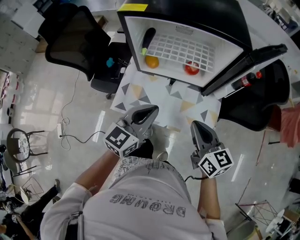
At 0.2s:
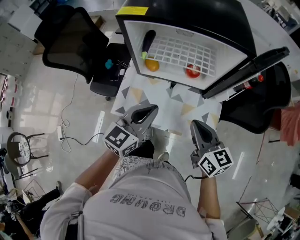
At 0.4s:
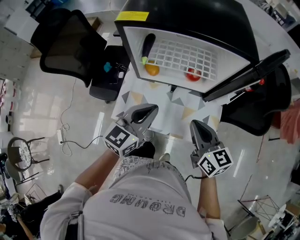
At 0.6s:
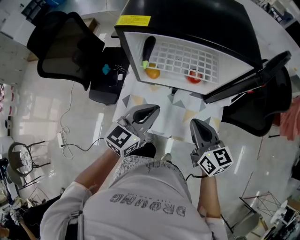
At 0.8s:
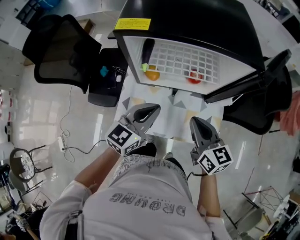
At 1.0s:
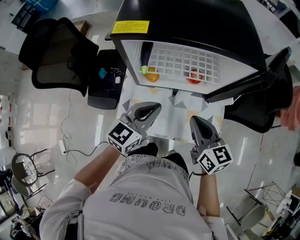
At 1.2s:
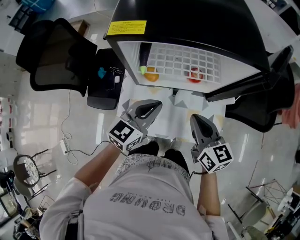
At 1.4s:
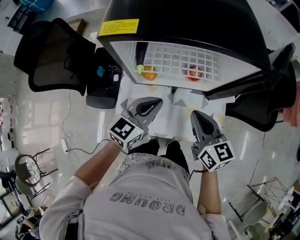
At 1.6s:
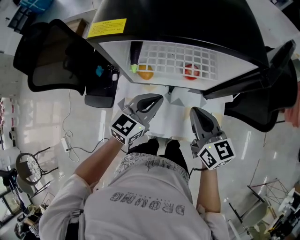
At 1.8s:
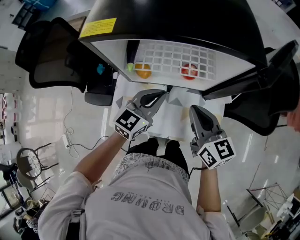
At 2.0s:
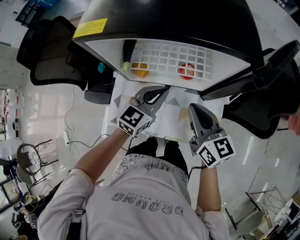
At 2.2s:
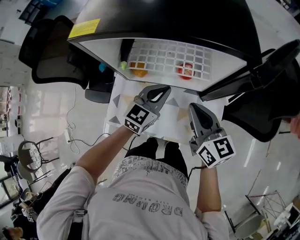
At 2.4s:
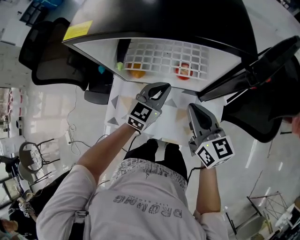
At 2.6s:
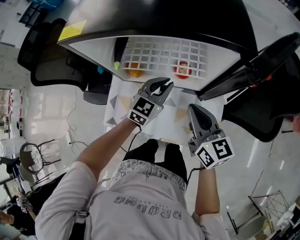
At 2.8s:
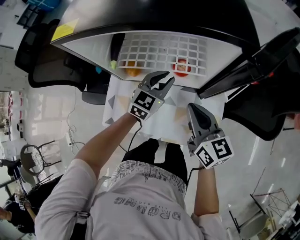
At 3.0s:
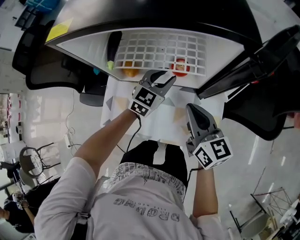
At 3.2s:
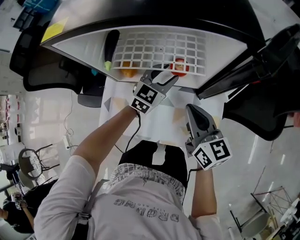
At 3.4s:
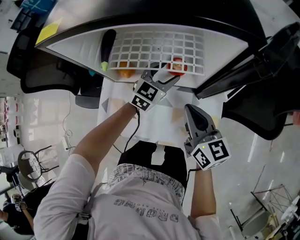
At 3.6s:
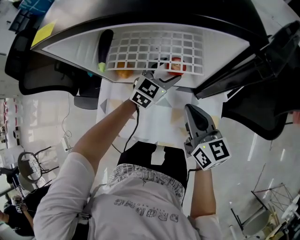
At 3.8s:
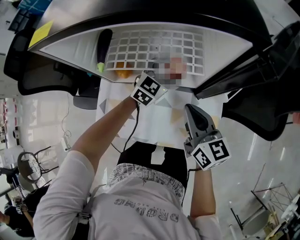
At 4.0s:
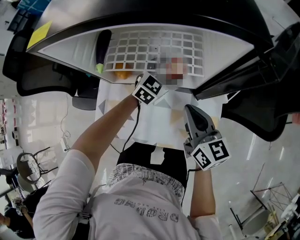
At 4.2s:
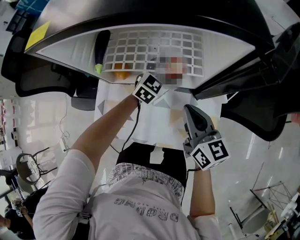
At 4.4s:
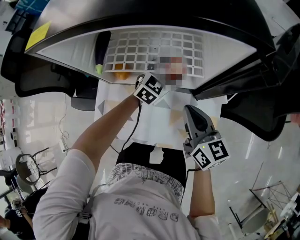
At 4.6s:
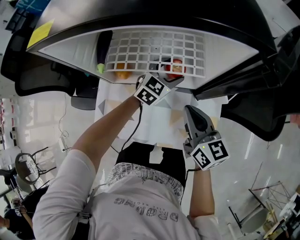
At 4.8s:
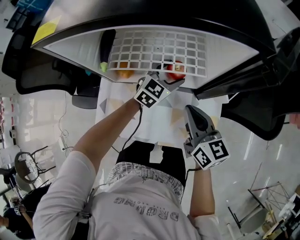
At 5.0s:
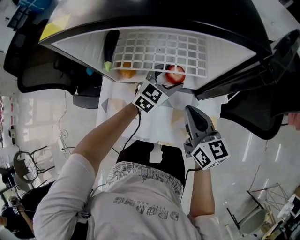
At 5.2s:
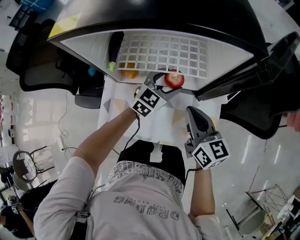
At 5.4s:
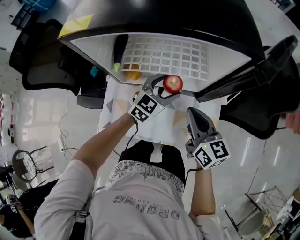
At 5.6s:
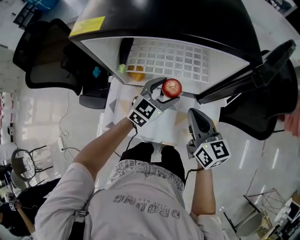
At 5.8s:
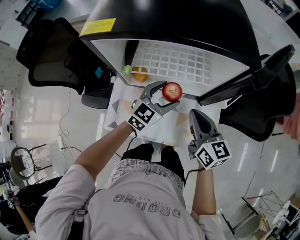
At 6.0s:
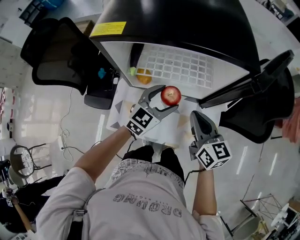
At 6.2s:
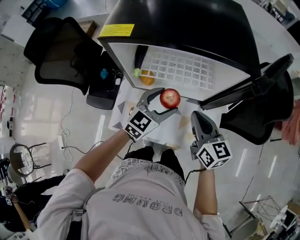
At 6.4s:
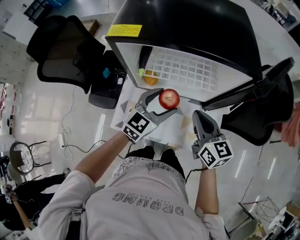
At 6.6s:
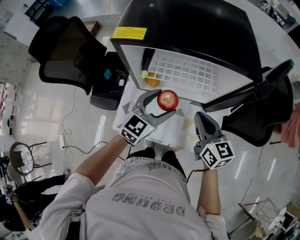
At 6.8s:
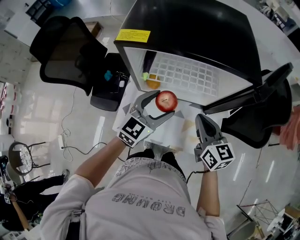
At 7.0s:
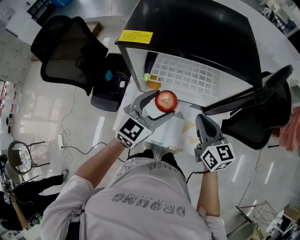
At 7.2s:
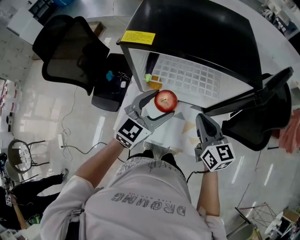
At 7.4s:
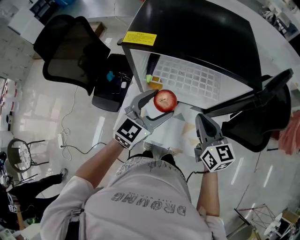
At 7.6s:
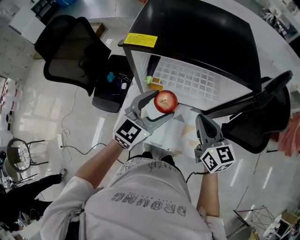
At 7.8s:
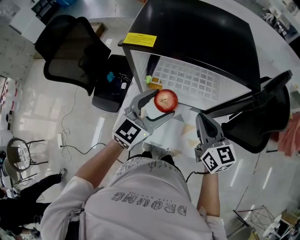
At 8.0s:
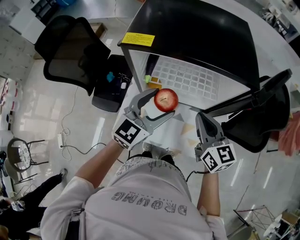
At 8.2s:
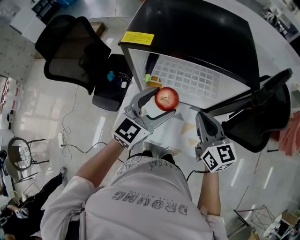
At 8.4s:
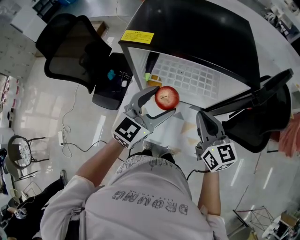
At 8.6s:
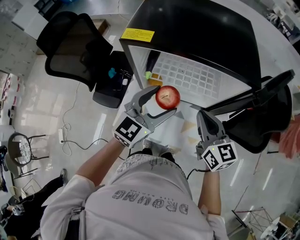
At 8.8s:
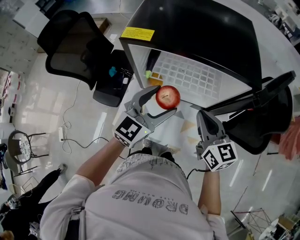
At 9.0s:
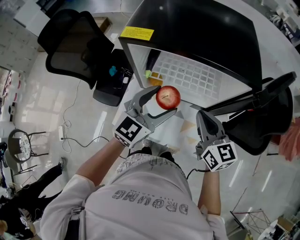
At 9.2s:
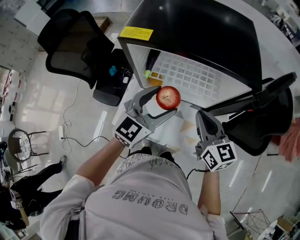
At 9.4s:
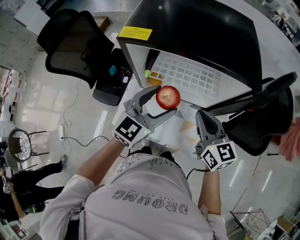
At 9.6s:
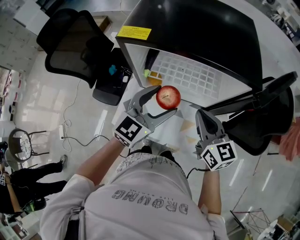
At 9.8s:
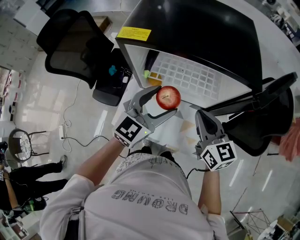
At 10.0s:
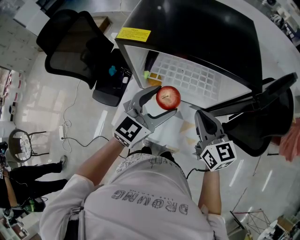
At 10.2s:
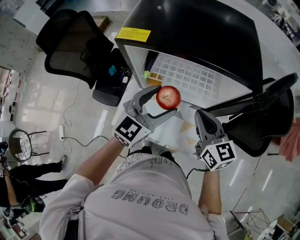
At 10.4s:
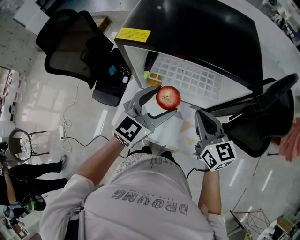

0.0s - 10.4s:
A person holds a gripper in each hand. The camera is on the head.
0.0s - 1.4s: The right gripper heads forward and to the left, covering some 10 cm; the left gripper goes some 10 cm forward.
1.4s - 3.0s: The right gripper moves to the right and downward, roughly 10 cm; the left gripper shifts about 20 cm forward, to the right and downward, and opens its fingers.
3.0s - 4.4s: The left gripper shifts by roughly 10 cm, and opens its fingers.
4.4s - 6.0s: The right gripper heads upward, covering about 5 cm; the left gripper travels backward, upward and to the left by some 20 cm.
6.0s - 7.4s: The right gripper moves some 5 cm. The left gripper goes some 15 cm upward and to the left.
7.4s - 9.0s: There are only small adjustments of the grippers.
9.0s - 10.4s: The two grippers keep their place.

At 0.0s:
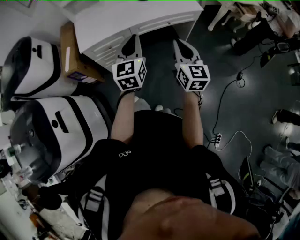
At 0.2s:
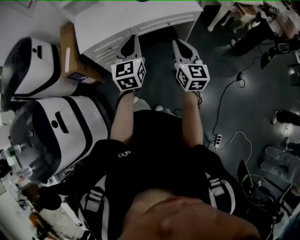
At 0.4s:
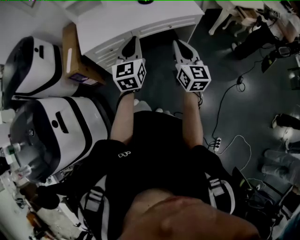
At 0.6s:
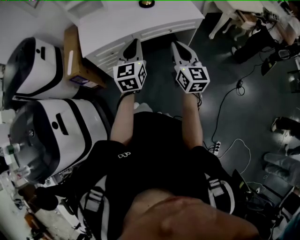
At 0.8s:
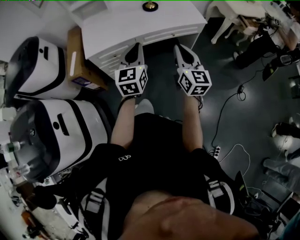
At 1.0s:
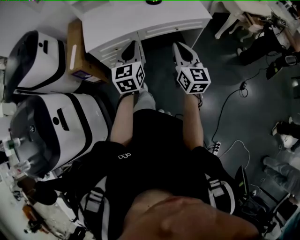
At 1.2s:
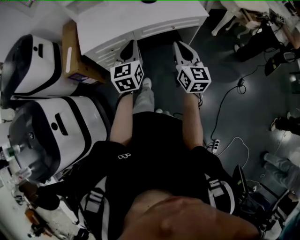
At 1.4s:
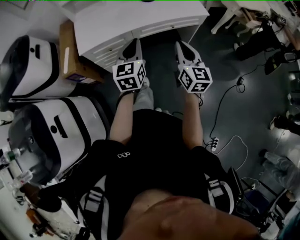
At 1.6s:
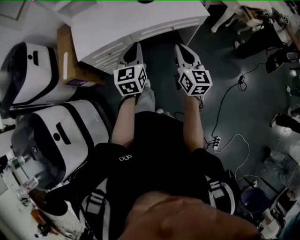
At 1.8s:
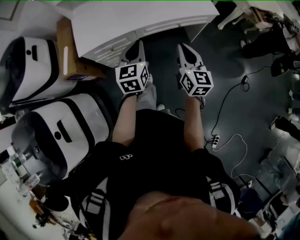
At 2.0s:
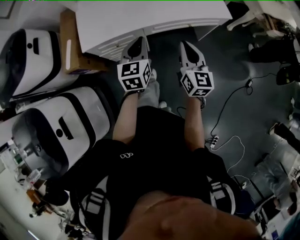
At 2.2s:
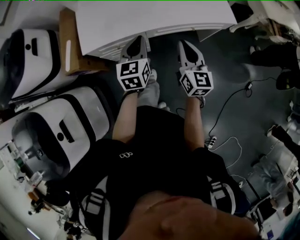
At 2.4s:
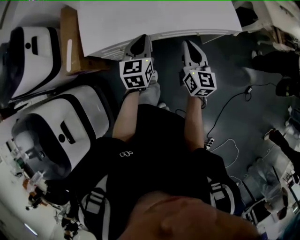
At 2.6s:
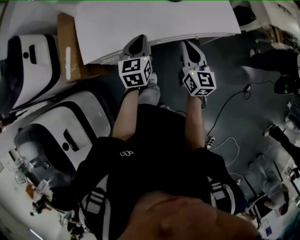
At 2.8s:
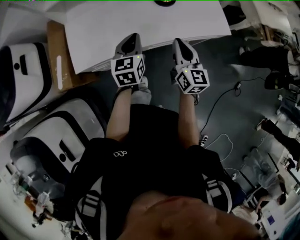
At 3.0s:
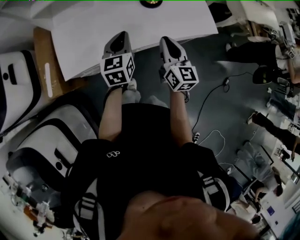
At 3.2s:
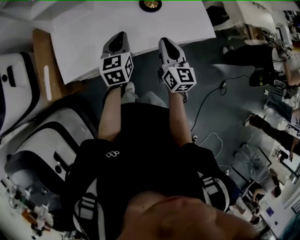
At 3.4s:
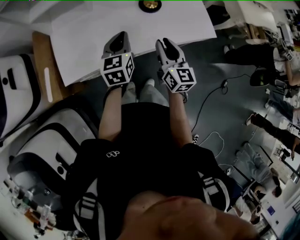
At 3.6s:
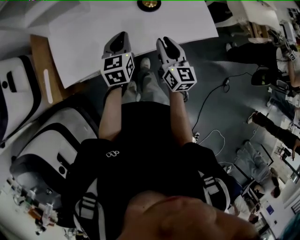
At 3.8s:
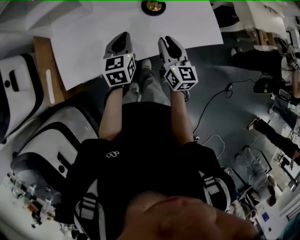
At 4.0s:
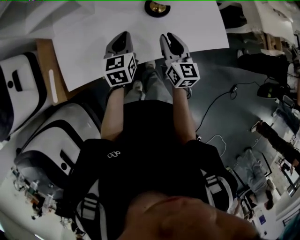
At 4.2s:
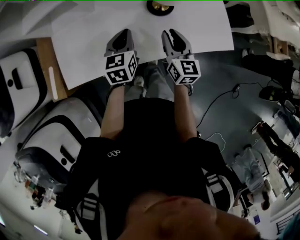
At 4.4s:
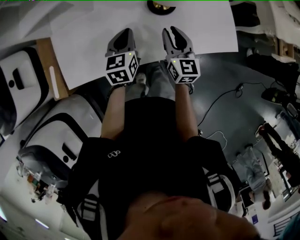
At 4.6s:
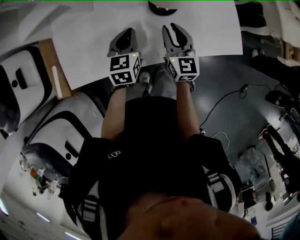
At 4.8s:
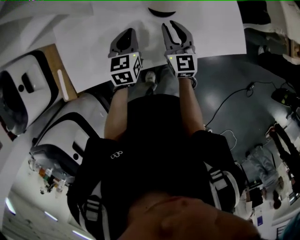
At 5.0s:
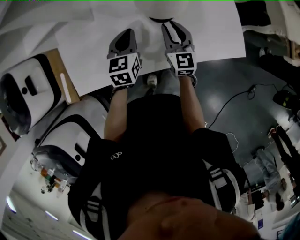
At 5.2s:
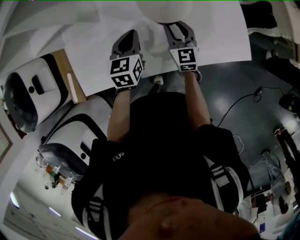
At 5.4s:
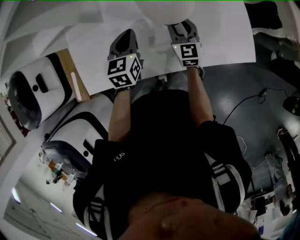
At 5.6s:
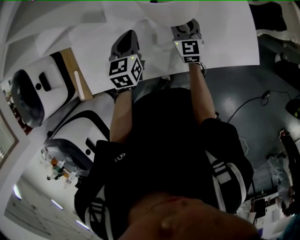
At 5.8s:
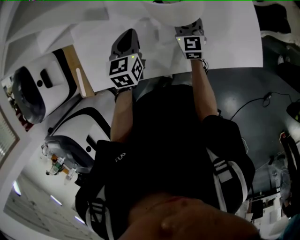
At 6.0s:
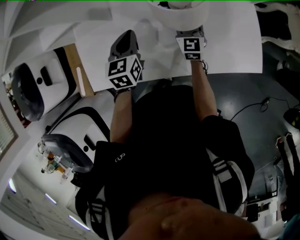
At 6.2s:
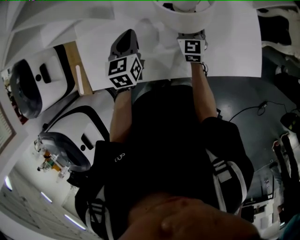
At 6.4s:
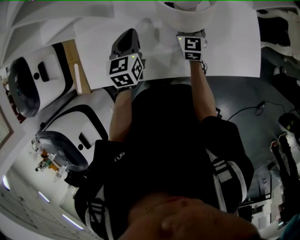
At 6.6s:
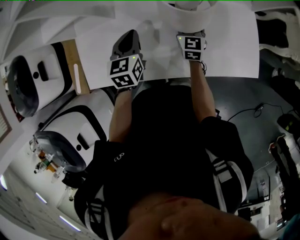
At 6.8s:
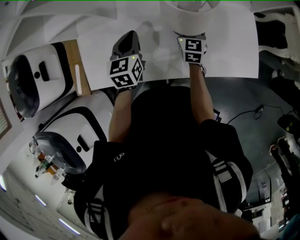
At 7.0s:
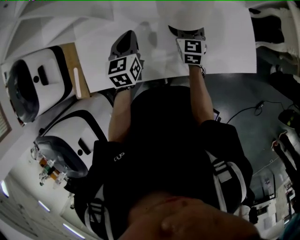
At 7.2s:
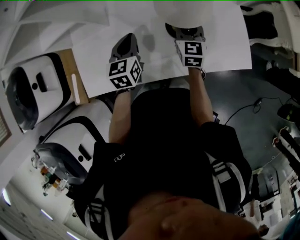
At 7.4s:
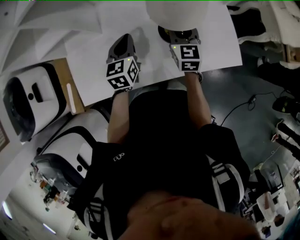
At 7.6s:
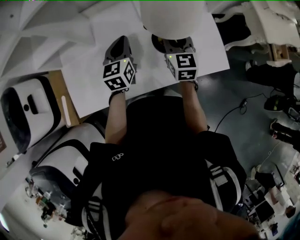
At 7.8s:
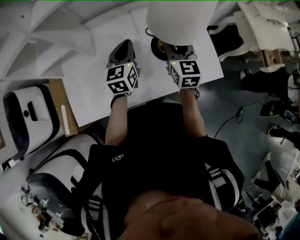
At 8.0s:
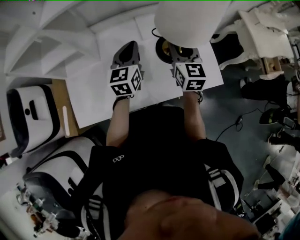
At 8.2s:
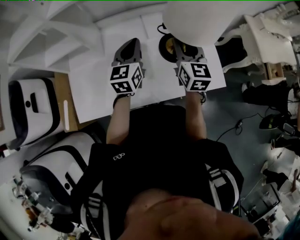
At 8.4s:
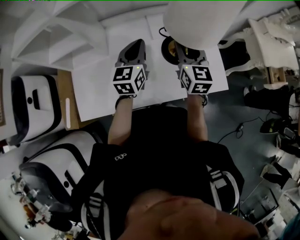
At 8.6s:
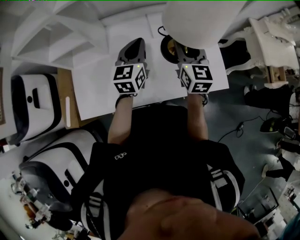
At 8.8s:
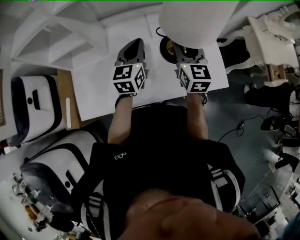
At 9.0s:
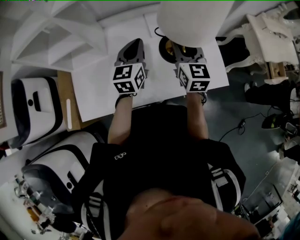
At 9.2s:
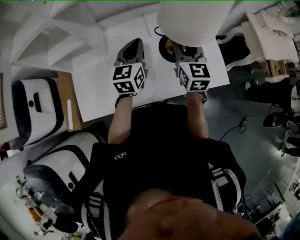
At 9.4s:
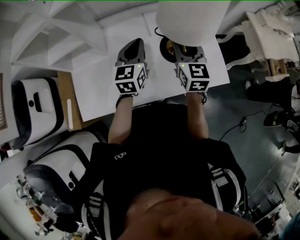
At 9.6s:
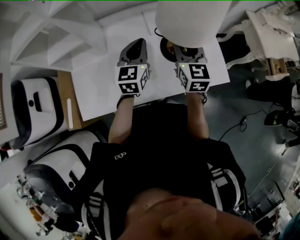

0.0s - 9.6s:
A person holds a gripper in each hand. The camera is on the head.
0.0s - 1.6s: The right gripper goes approximately 10 cm forward. The left gripper heads forward and downward, covering about 10 cm.
1.6s - 3.2s: The grippers both shift forward by approximately 25 cm.
3.2s - 4.8s: Both grippers move forward and downward, about 20 cm.
4.8s - 6.4s: The left gripper ends up approximately 5 cm from where it was. The right gripper is displaced forward and downward by roughly 15 cm.
6.4s - 8.0s: The left gripper travels upward and to the right by approximately 15 cm, and turns by some 30 degrees, while the right gripper heads upward, covering approximately 20 cm.
8.0s - 9.6s: There are only small adjustments of the grippers.

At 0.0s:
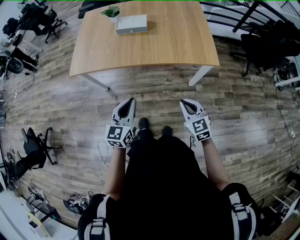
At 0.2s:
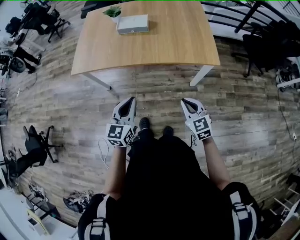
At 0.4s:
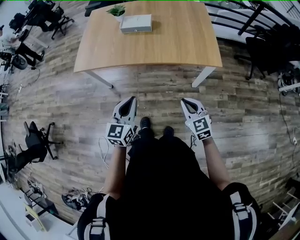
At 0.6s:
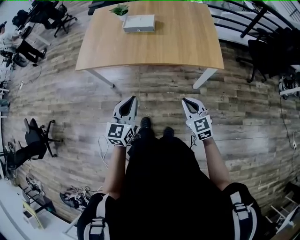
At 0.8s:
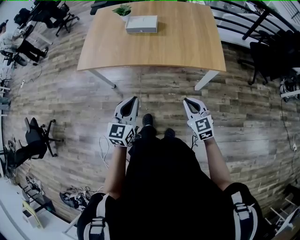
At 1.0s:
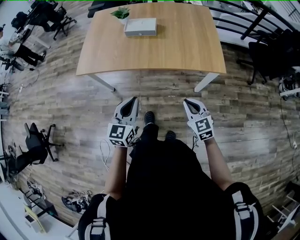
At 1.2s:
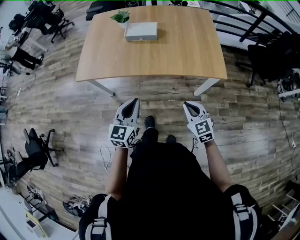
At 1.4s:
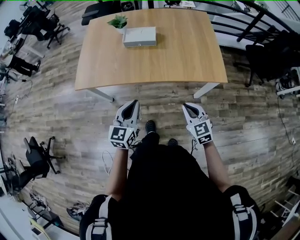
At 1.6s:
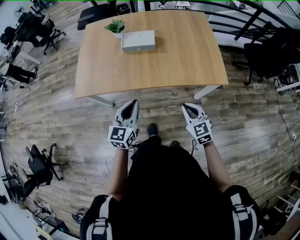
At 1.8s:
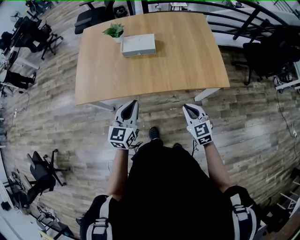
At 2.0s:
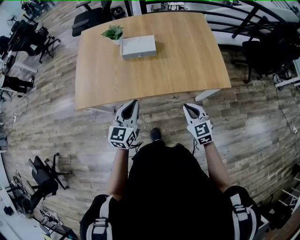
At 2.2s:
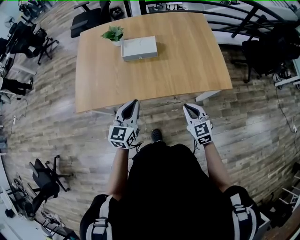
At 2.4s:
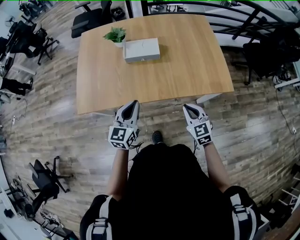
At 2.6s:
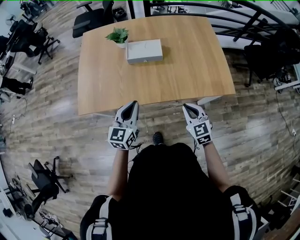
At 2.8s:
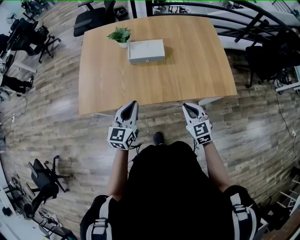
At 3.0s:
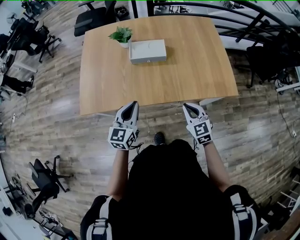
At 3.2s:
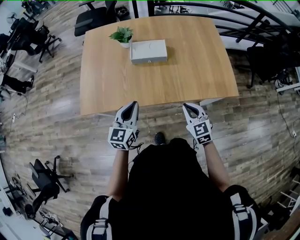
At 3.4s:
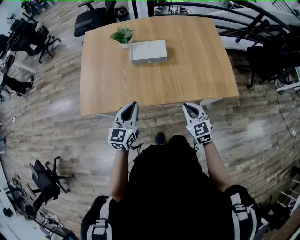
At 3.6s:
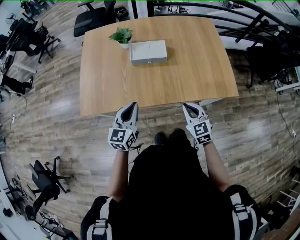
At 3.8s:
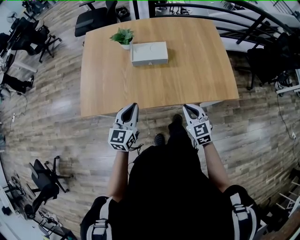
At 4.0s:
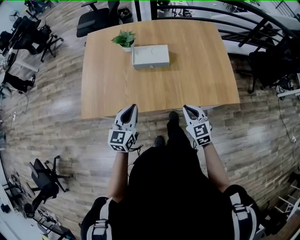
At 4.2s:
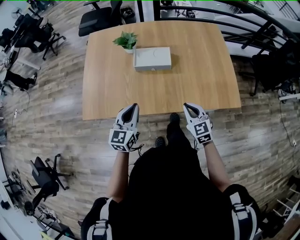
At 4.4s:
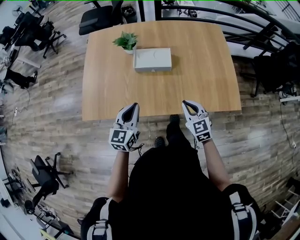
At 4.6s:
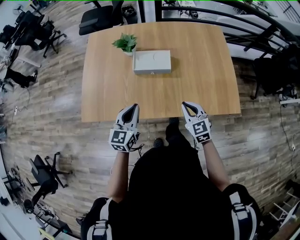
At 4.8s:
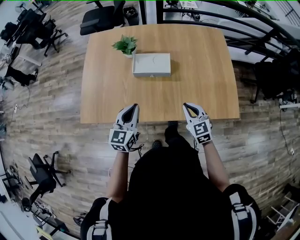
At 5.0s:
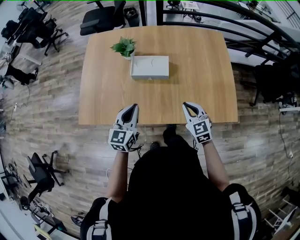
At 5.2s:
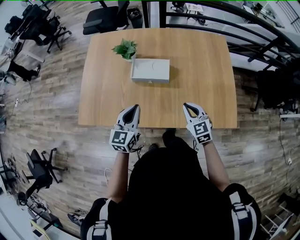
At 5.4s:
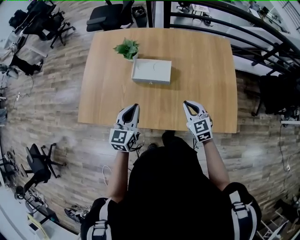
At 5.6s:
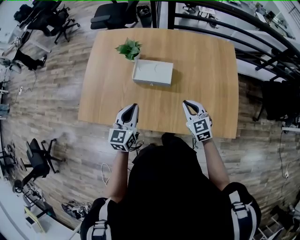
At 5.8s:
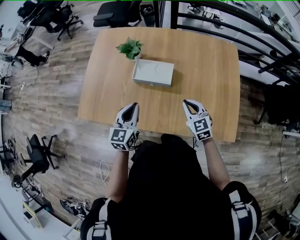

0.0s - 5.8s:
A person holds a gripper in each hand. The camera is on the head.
0.0s - 1.4s: The two grippers go approximately 10 cm forward.
1.4s - 2.8s: The two grippers go roughly 20 cm forward and to the left.
2.8s - 4.4s: The two grippers go about 10 cm forward.
4.4s - 5.8s: The two grippers go roughly 15 cm forward and to the right.
